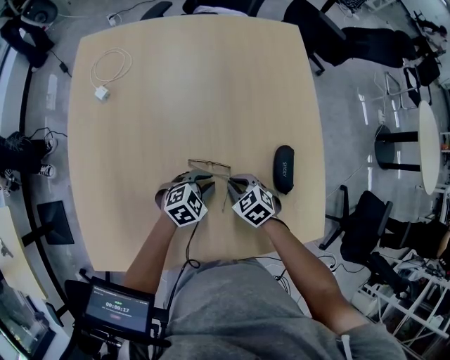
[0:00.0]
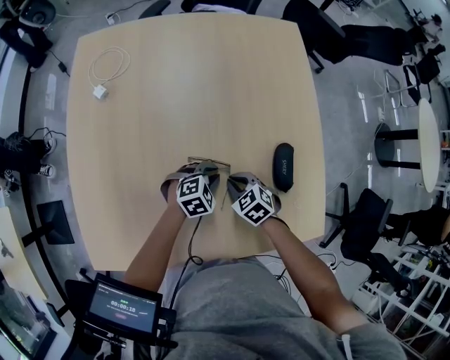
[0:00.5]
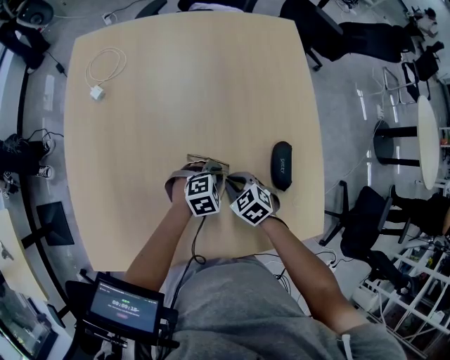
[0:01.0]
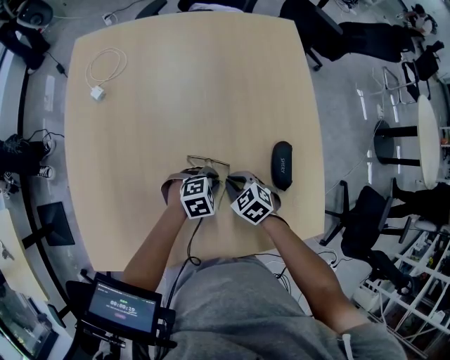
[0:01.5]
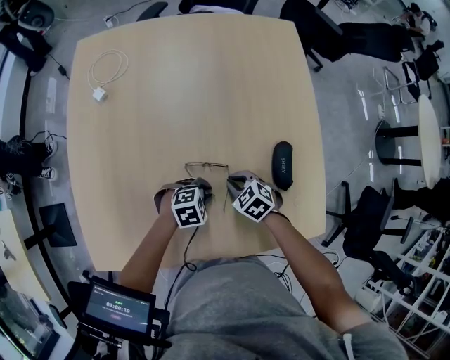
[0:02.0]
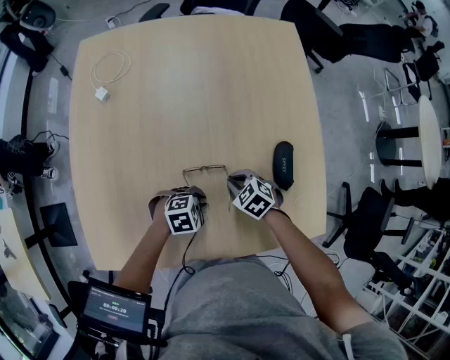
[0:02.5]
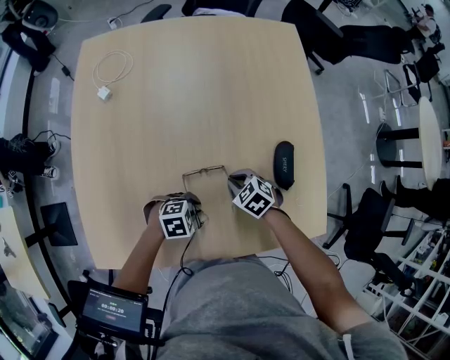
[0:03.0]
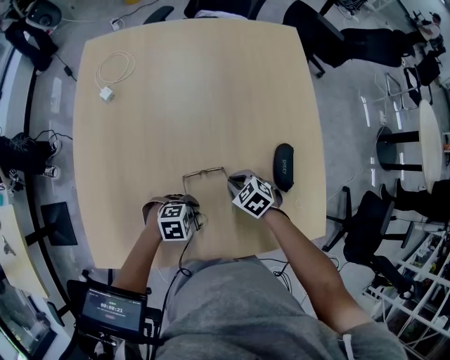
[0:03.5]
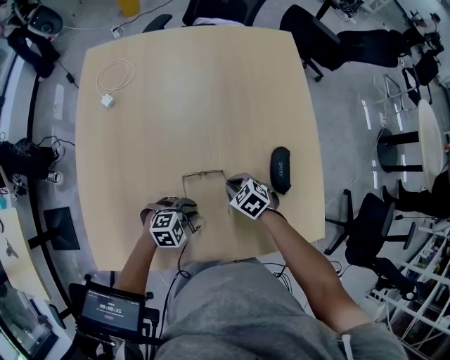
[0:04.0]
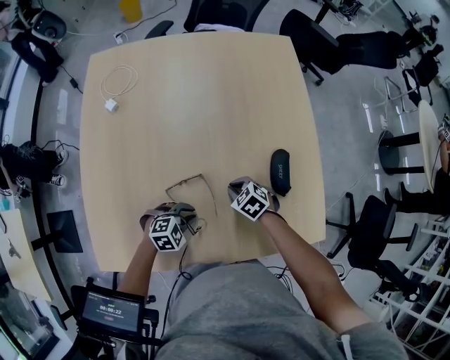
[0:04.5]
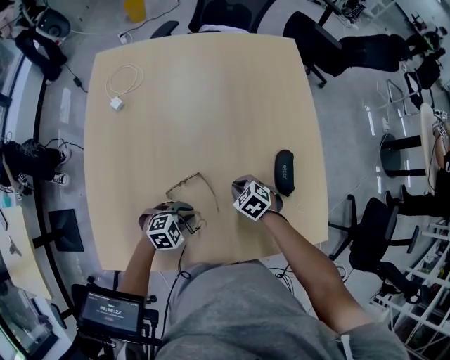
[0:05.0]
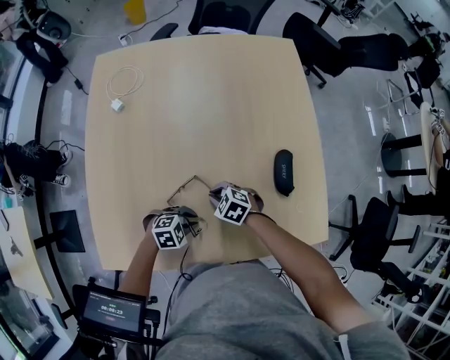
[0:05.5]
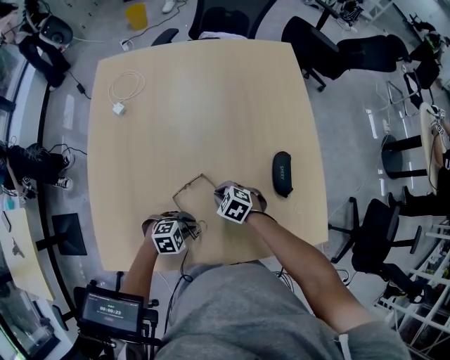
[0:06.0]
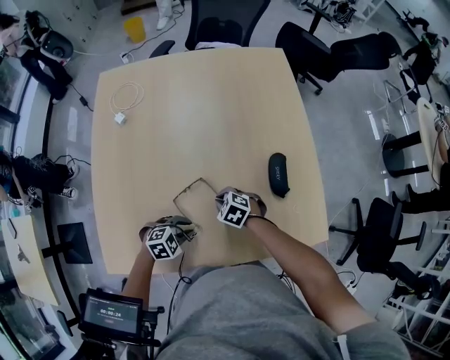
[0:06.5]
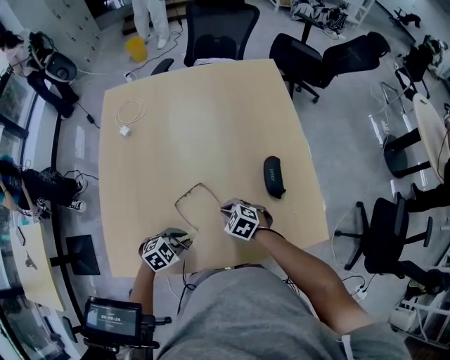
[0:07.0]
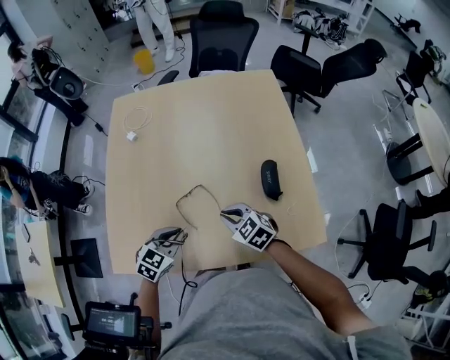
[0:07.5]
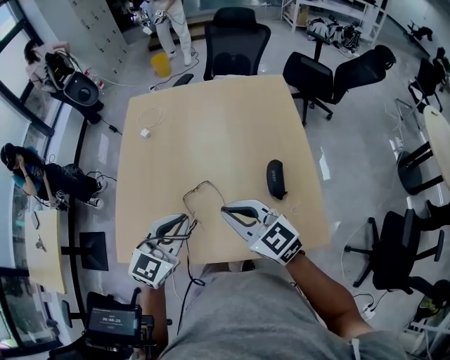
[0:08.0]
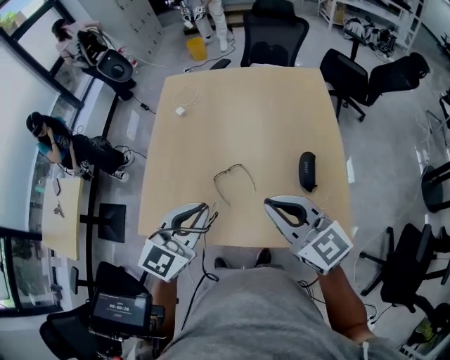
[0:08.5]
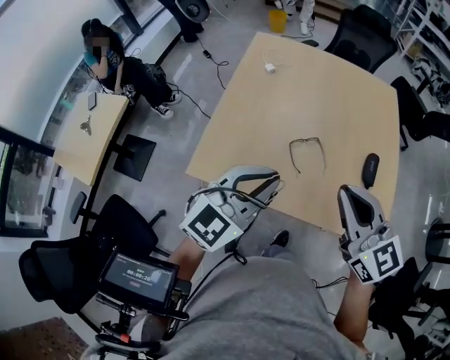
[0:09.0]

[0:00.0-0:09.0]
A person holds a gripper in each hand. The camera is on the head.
0.0 to 2.0 s: The left gripper ends up some 5 cm from where it was, and turns by some 20 degrees.
2.0 to 4.5 s: The left gripper changes place by some 10 cm.
4.5 to 7.0 s: The right gripper moves some 10 cm, while the left gripper changes place by approximately 10 cm.
7.0 to 9.0 s: Both grippers move upward, approximately 35 cm. The left gripper angles its fingers upward, by about 40 degrees. The right gripper angles its fingers upward, by approximately 50 degrees.

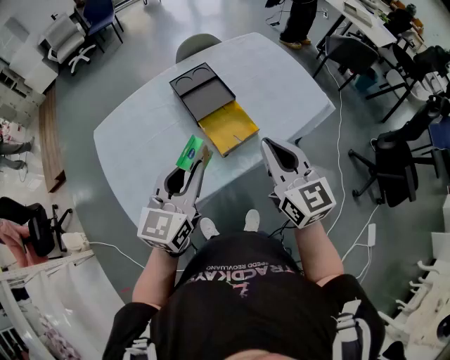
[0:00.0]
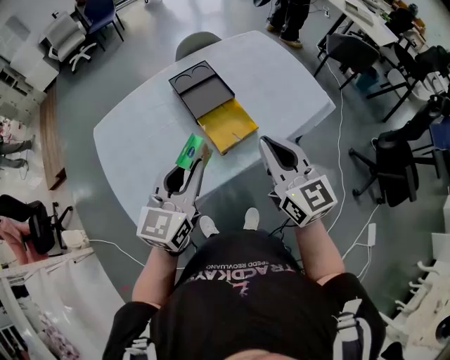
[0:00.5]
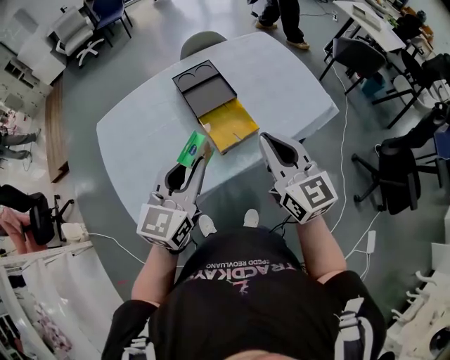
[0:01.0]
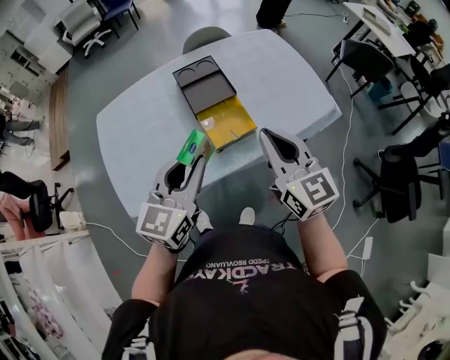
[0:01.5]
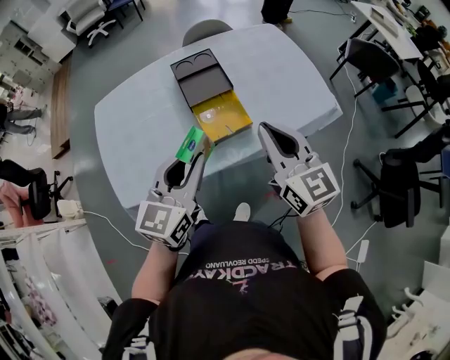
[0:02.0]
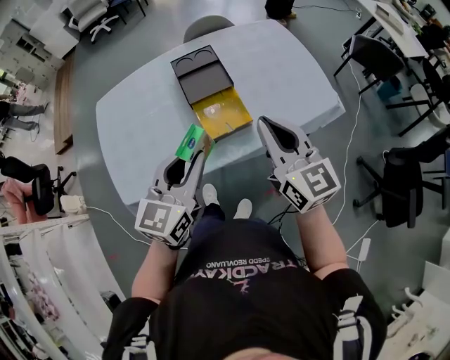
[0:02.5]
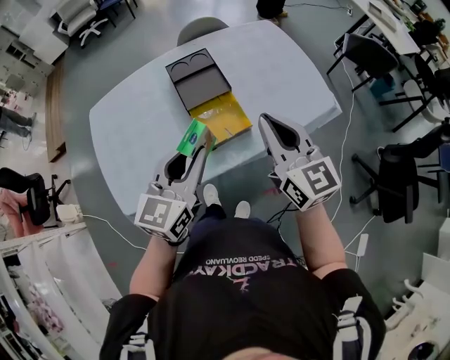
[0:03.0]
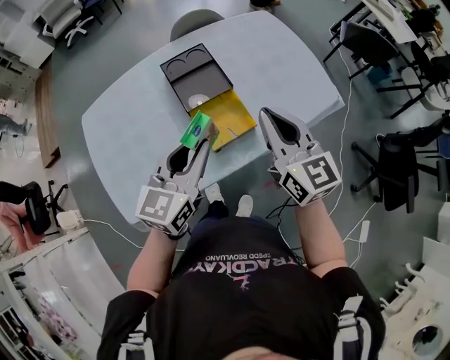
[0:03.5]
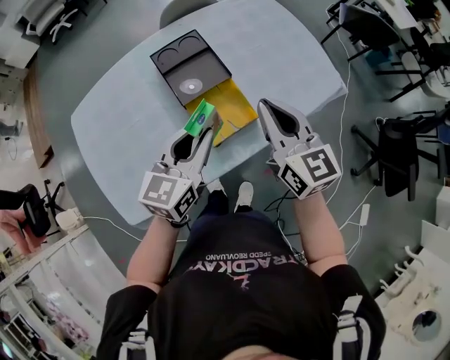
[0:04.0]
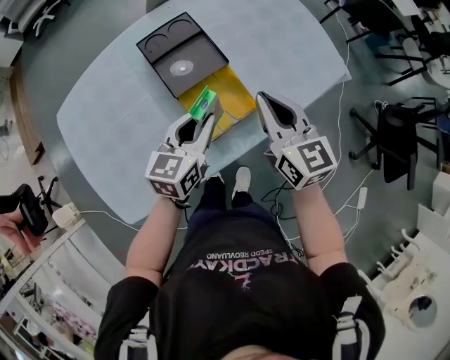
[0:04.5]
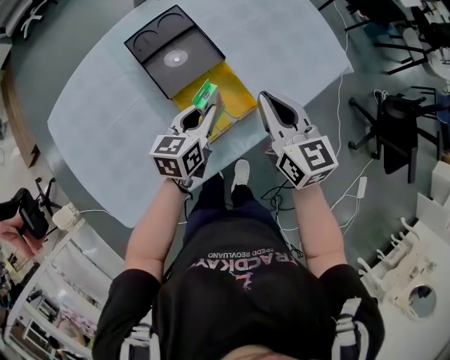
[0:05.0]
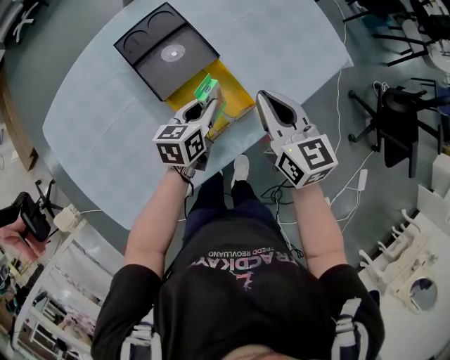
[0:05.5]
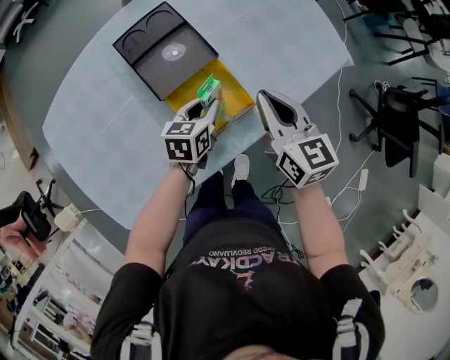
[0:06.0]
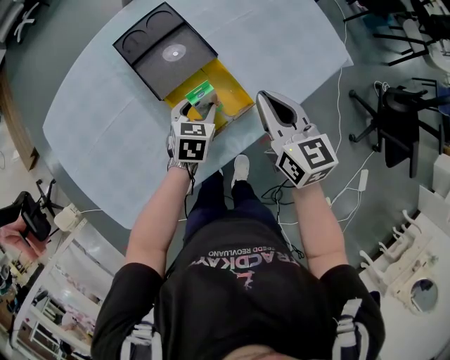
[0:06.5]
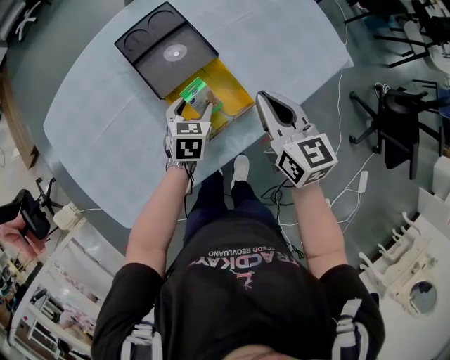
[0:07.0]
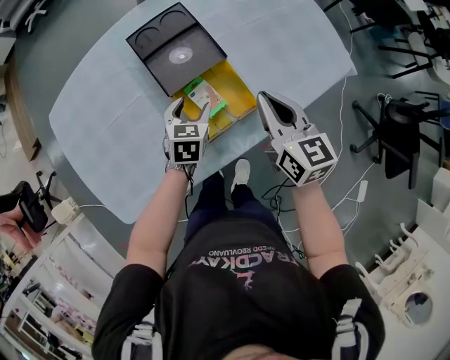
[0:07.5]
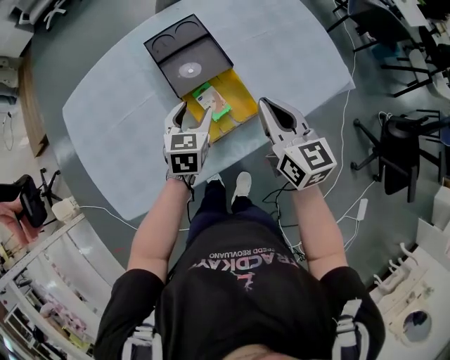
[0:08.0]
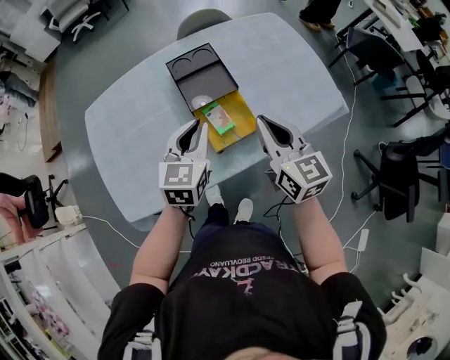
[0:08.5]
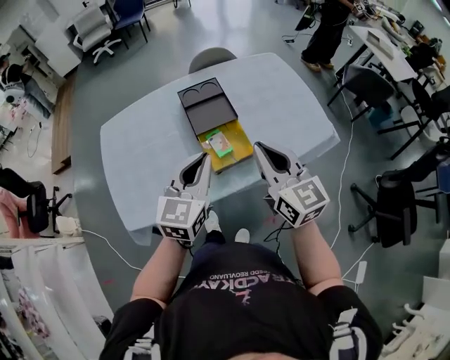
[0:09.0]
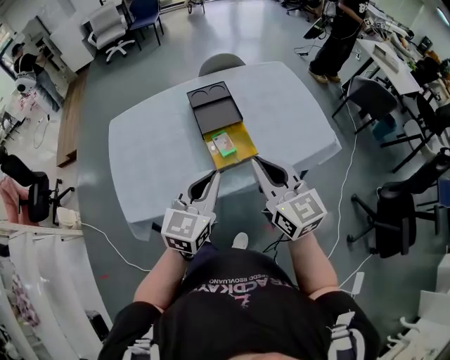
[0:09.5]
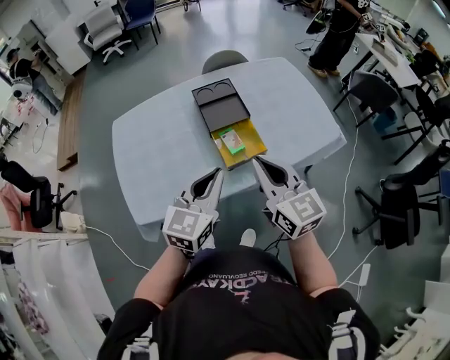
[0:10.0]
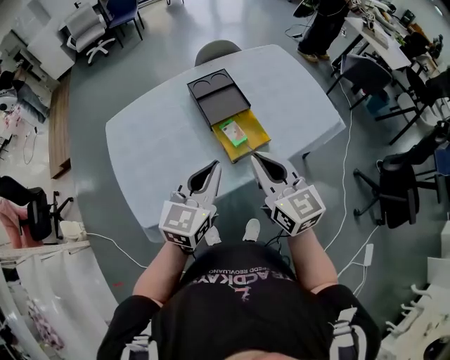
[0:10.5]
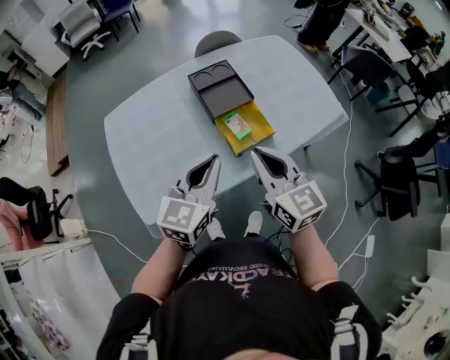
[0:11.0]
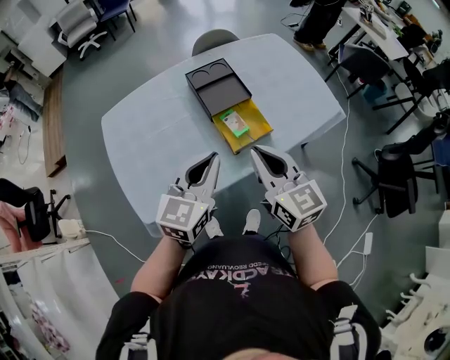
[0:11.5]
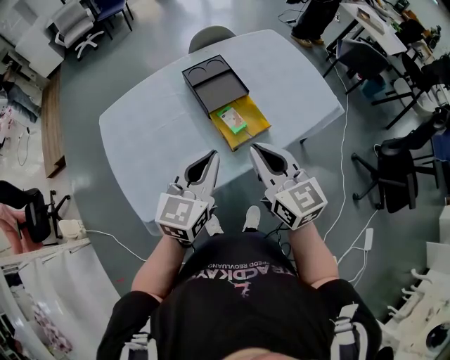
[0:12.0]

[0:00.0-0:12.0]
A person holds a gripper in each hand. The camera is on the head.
0.0 to 2.0 s: The grippers both shift to the right by about 5 cm.
2.0 to 4.0 s: The grippers both shift forward and downward by approximately 15 cm.
4.0 to 6.0 s: The right gripper moves downward, about 15 cm. The left gripper goes some 25 cm downward and forward, and rotates some 30 degrees.
6.0 to 8.0 s: The left gripper moves upward and to the left, roughly 10 cm, swivels approximately 20 degrees, and opens up. Meanwhile the right gripper ends up roughly 5 cm from where it was.
8.0 to 10.0 s: The left gripper moves upward and backward, some 30 cm, turns by approximately 30 degrees, and closes; the right gripper moves backward, upward and to the left, roughly 25 cm.
10.0 to 12.0 s: The two grippers go roughly 5 cm to the left.

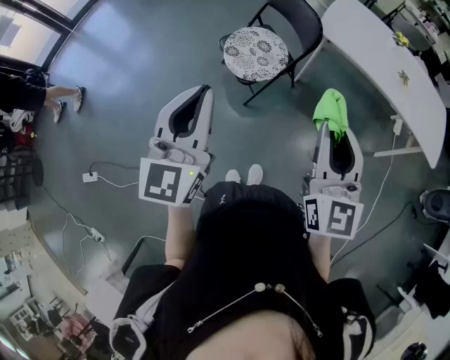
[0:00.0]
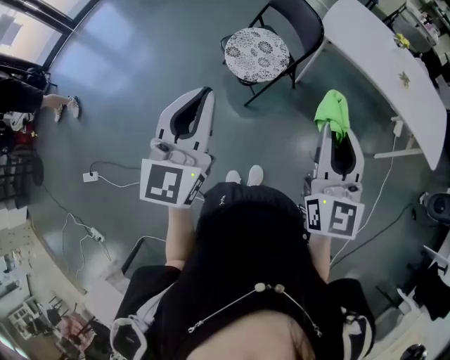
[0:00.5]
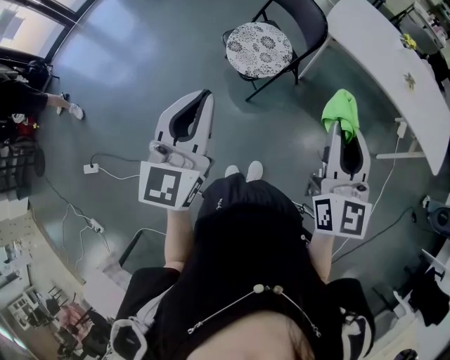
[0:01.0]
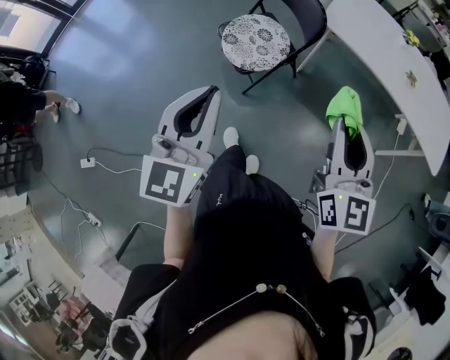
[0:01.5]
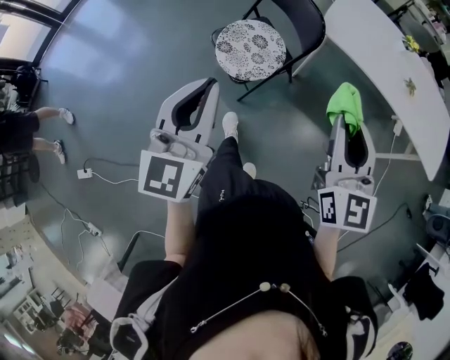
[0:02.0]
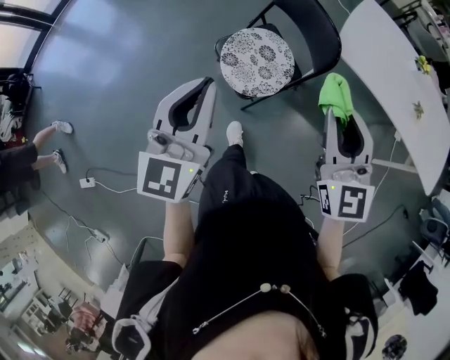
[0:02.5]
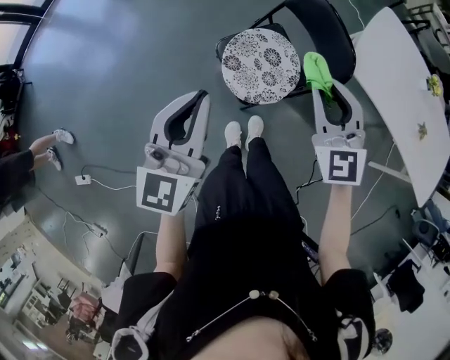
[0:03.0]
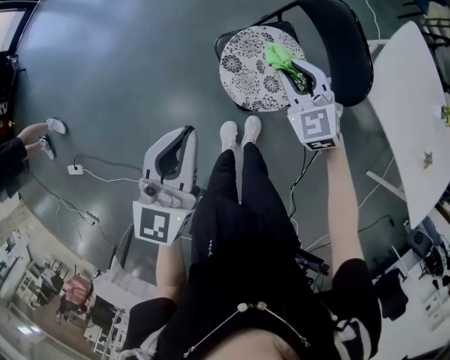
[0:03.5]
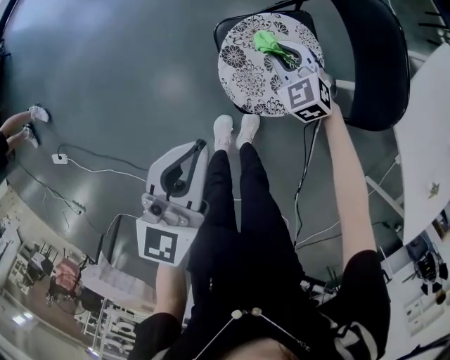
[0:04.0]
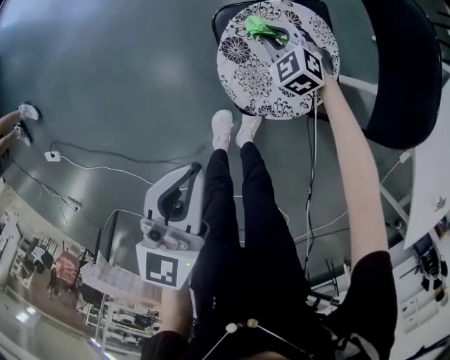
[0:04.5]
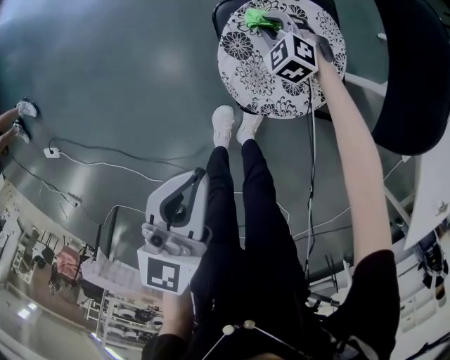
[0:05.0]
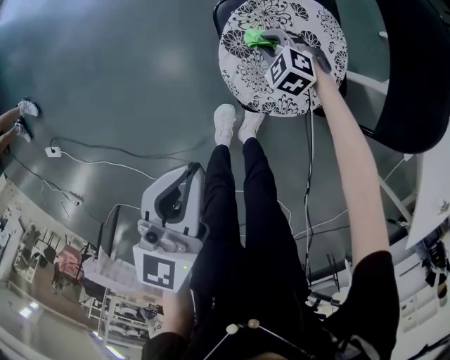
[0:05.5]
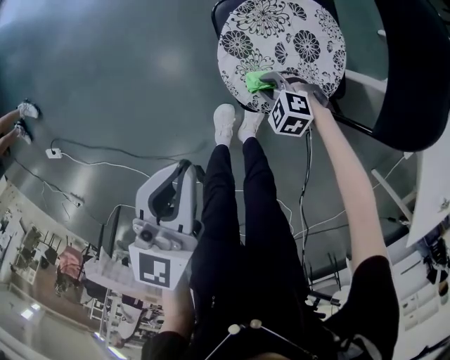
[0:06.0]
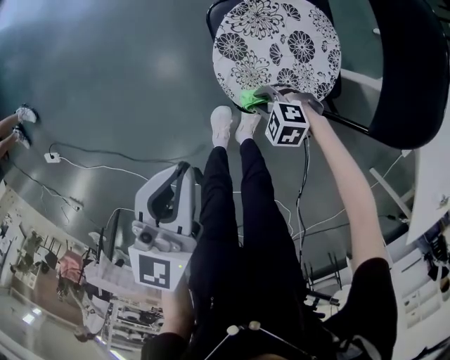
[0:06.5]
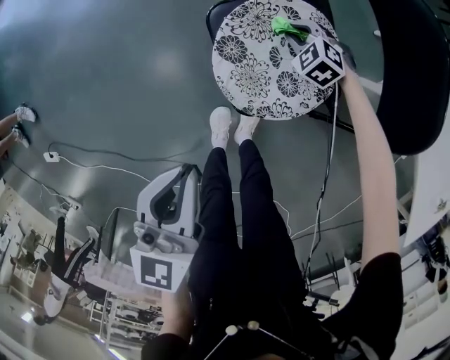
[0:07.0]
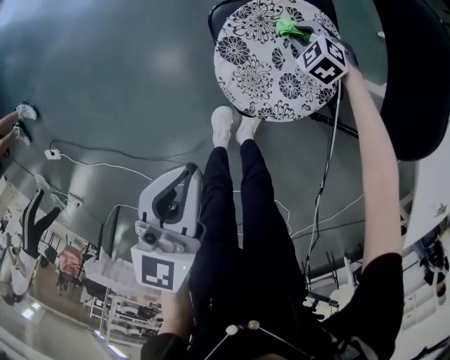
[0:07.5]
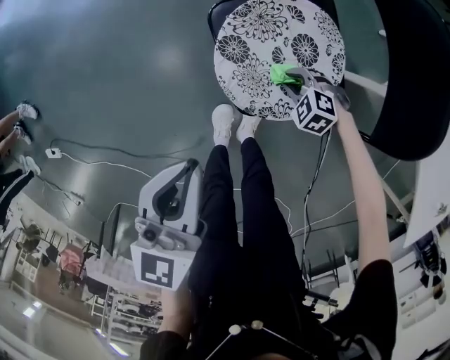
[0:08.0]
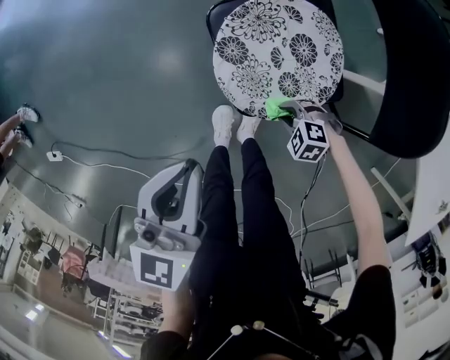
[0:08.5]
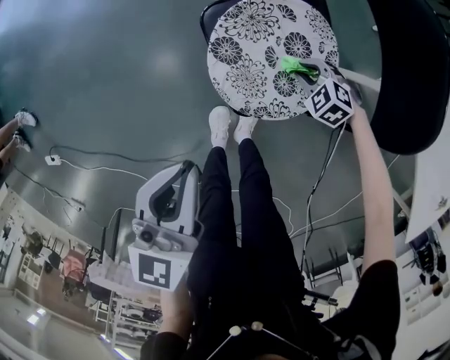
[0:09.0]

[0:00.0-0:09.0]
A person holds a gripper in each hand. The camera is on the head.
0.0 to 2.0 s: Both grippers travel together forward, approximately 10 cm.
2.0 to 4.5 s: The left gripper shifts about 35 cm downward, and swivels about 30 degrees, while the right gripper moves downward, some 60 cm, and points its fingers roughly 50 degrees further downward.
